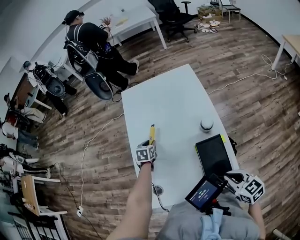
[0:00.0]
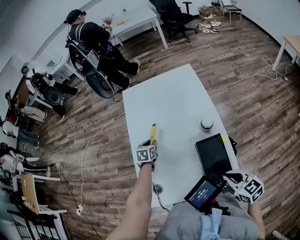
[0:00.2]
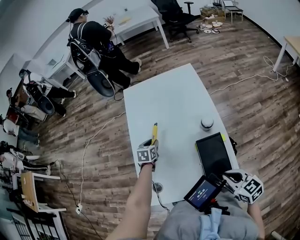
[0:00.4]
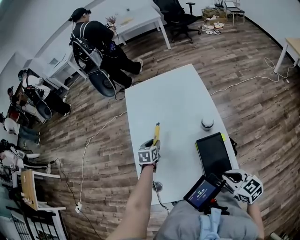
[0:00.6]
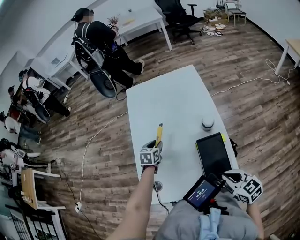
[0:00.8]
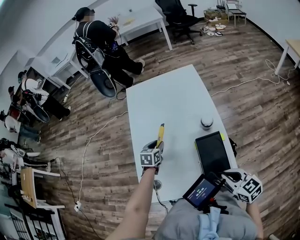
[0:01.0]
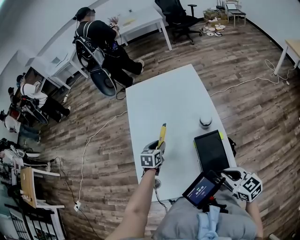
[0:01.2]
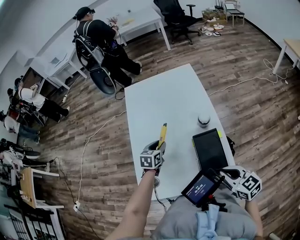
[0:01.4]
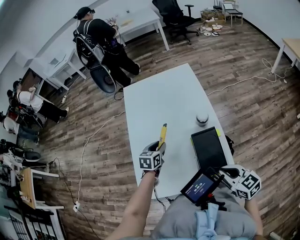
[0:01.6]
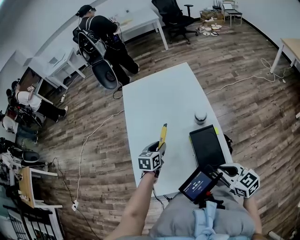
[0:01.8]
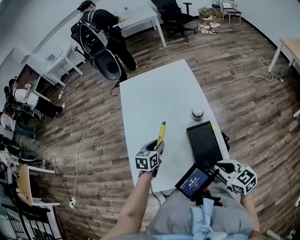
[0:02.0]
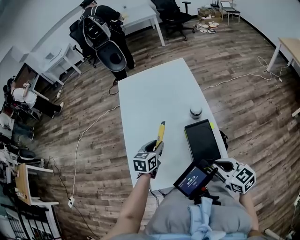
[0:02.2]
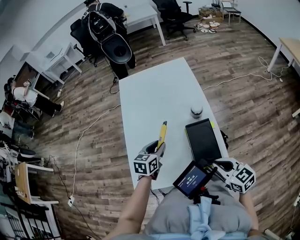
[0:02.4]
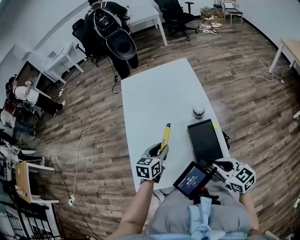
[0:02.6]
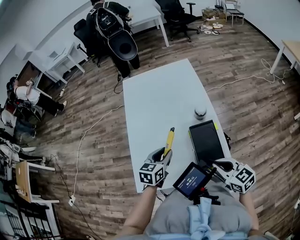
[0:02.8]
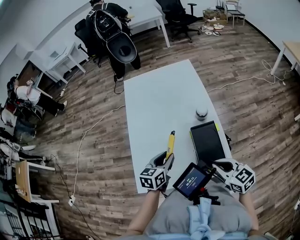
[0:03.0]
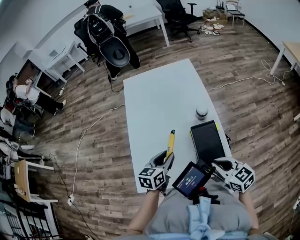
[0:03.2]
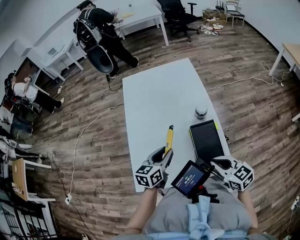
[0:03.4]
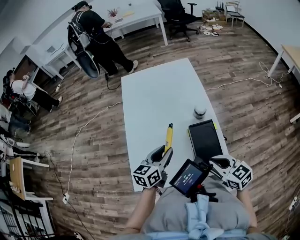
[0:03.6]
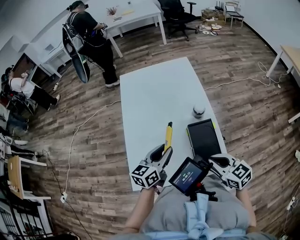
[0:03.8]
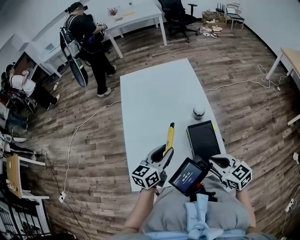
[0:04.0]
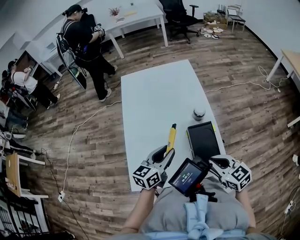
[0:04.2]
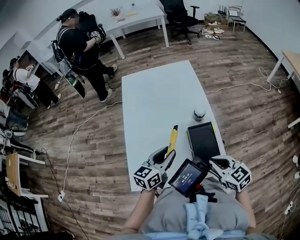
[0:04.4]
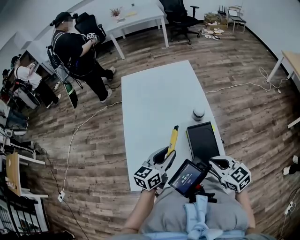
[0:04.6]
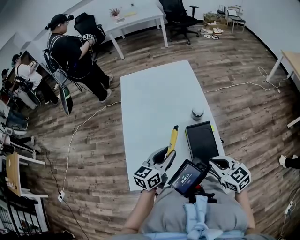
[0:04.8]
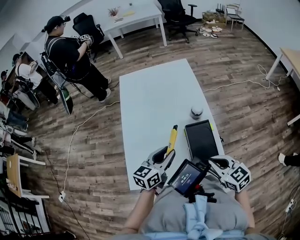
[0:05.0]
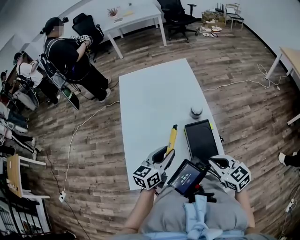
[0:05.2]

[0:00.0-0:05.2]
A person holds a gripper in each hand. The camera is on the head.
0:00.0 to 0:01.8: The left gripper heads backward, upward and to the right, covering approximately 15 cm.
0:01.8 to 0:03.4: The left gripper travels backward and upward by about 10 cm.
0:03.4 to 0:05.2: The grippers move only a little.

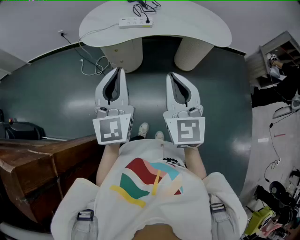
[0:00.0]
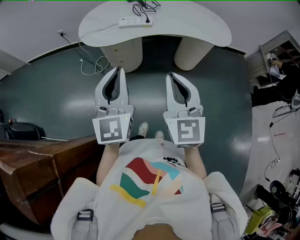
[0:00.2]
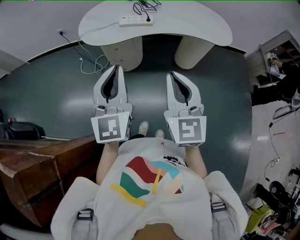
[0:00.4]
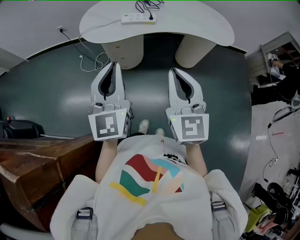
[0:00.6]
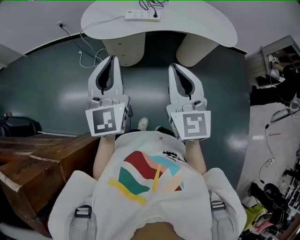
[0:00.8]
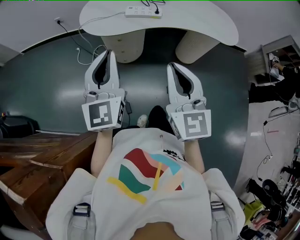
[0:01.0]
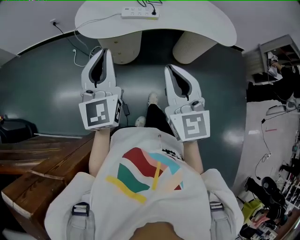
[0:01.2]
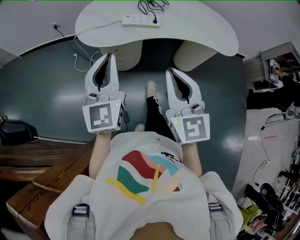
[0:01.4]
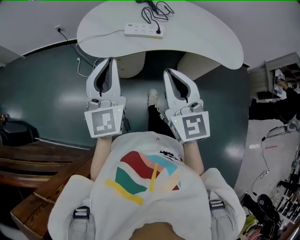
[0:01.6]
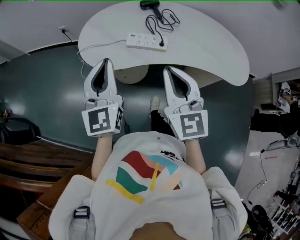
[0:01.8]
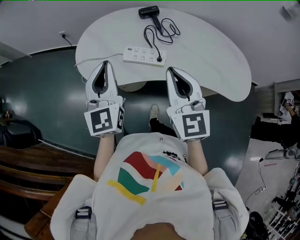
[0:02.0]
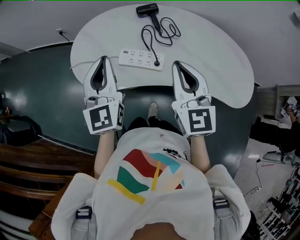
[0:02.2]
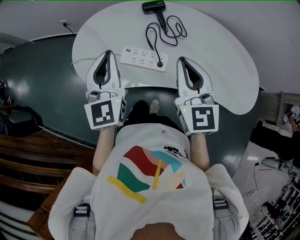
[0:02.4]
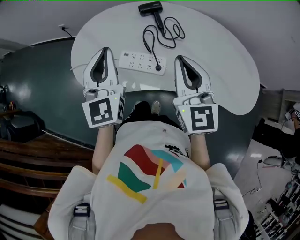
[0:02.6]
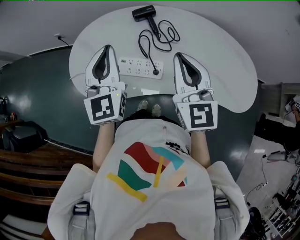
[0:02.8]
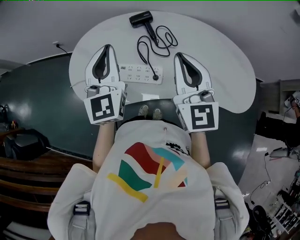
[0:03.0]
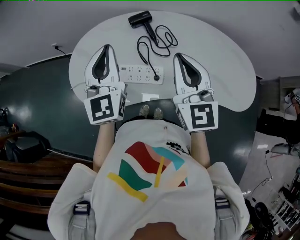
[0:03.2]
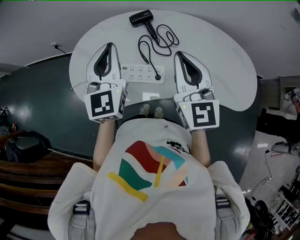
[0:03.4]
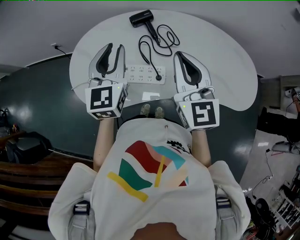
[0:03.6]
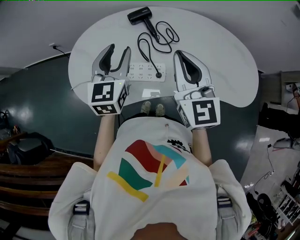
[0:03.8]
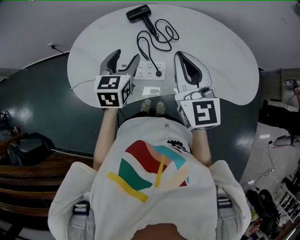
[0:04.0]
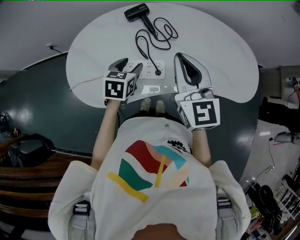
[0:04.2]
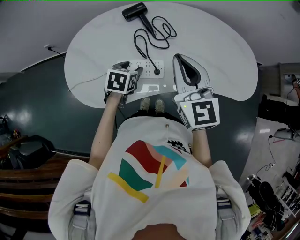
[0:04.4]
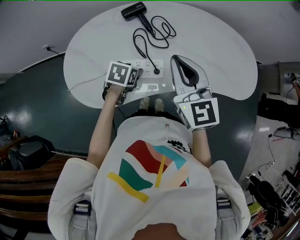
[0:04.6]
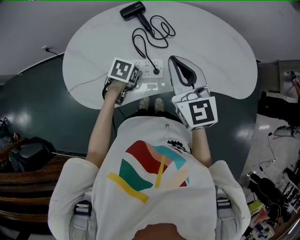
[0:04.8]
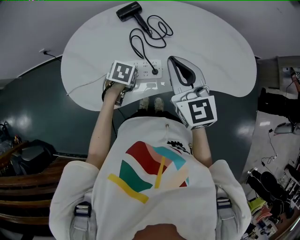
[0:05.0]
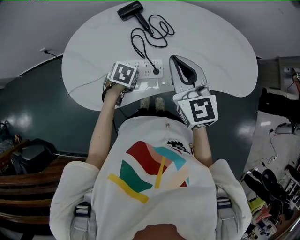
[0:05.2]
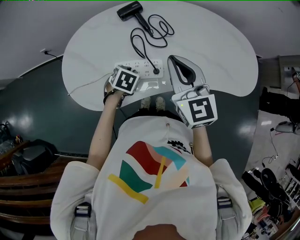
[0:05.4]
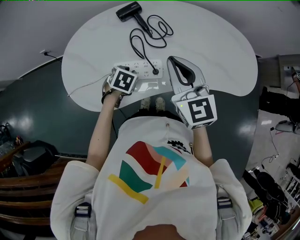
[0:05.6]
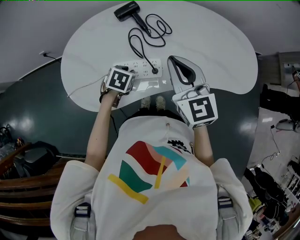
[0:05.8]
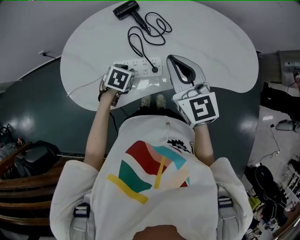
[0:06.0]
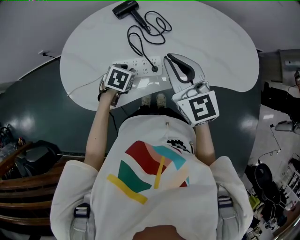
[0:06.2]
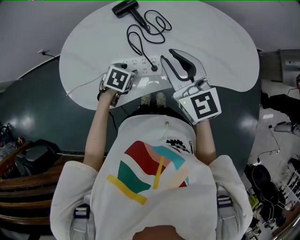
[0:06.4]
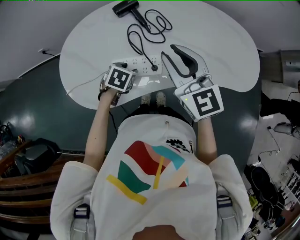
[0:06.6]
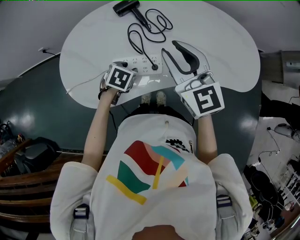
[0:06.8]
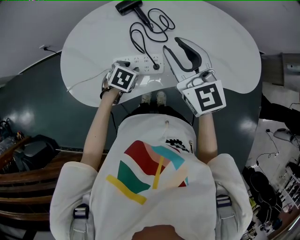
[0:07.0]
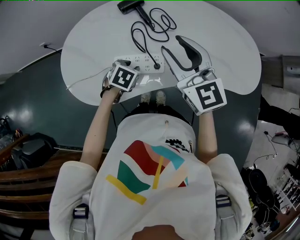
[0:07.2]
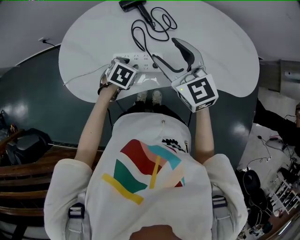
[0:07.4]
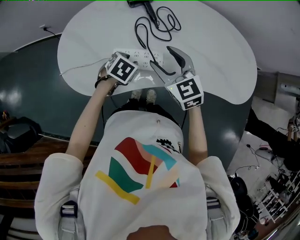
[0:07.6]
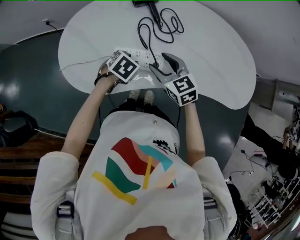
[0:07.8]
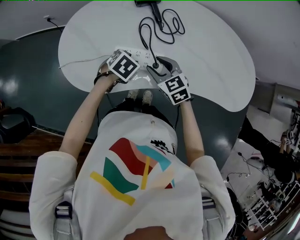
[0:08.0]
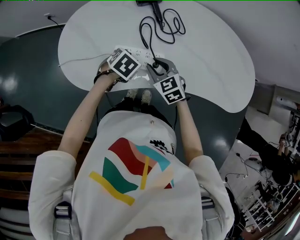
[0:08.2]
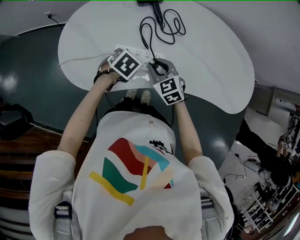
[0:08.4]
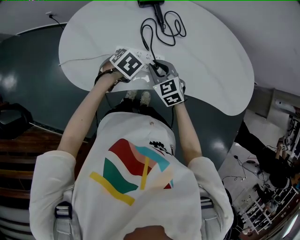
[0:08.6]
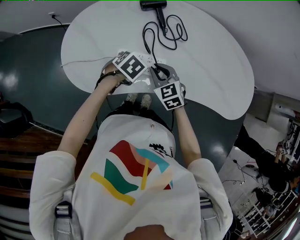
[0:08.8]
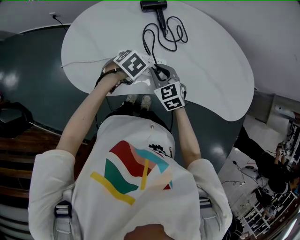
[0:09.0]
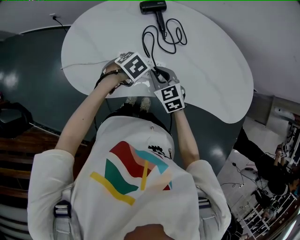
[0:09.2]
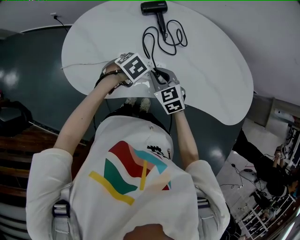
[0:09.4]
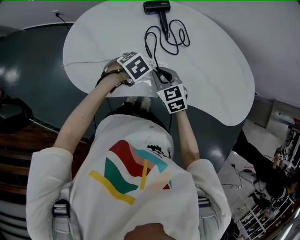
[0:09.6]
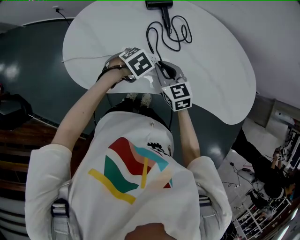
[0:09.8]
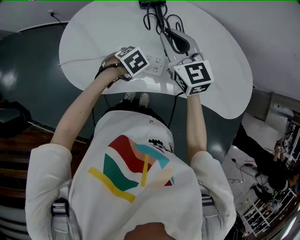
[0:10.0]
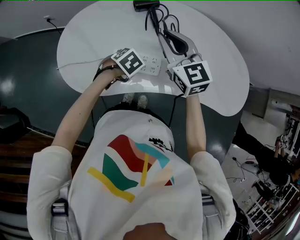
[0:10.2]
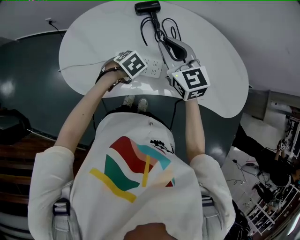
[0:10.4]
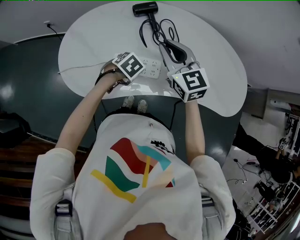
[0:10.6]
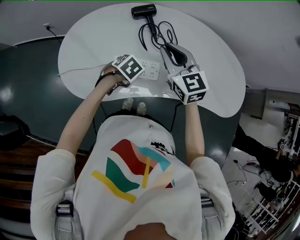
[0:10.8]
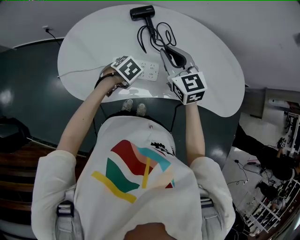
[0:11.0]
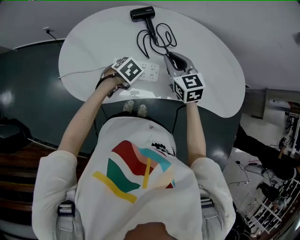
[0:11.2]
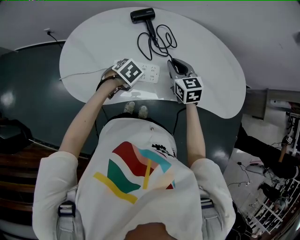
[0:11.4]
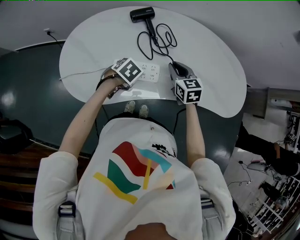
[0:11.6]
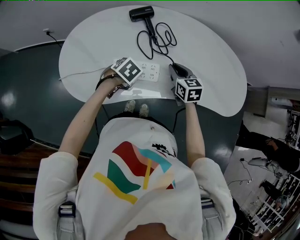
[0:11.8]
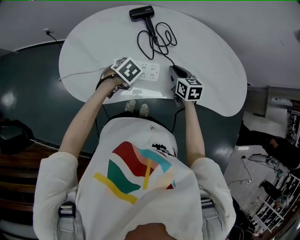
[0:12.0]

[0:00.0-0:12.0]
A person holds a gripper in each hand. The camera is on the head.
0:00.0 to 0:01.6: Both grippers move forward, about 15 cm.
0:01.6 to 0:03.0: The right gripper shifts approximately 35 cm forward and to the right; the left gripper moves forward, roughly 30 cm.
0:03.0 to 0:04.4: The left gripper heads downward, covering approximately 25 cm, points its fingers some 60 degrees further downward, and opens up.
0:04.4 to 0:06.0: The left gripper closes up.
0:06.0 to 0:07.6: The right gripper moves downward, roughly 10 cm, swivels some 20 degrees, and opens its fingers.
0:07.6 to 0:09.0: The right gripper is displaced downward by about 10 cm, and closes its fingers.
0:09.0 to 0:10.4: The right gripper goes some 20 cm upward, and swivels roughly 20 degrees.
0:10.4 to 0:12.0: The right gripper is displaced downward by about 20 cm, and turns by approximately 40 degrees.

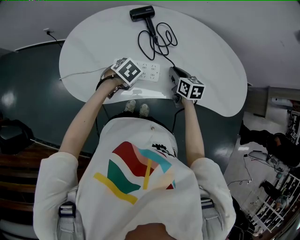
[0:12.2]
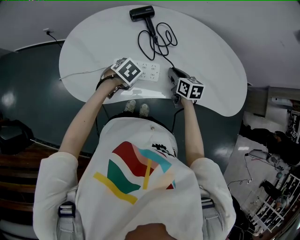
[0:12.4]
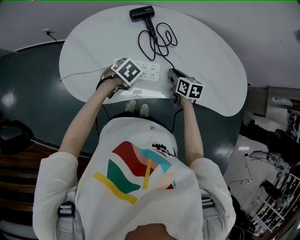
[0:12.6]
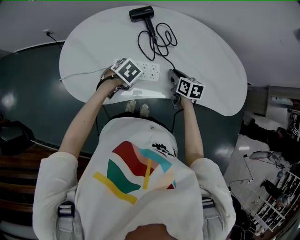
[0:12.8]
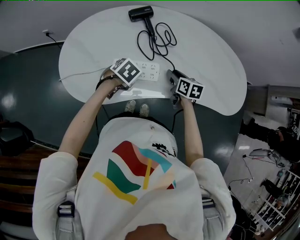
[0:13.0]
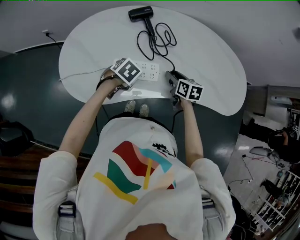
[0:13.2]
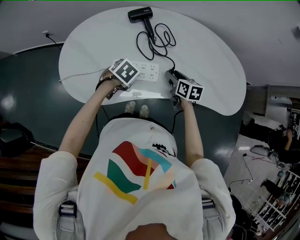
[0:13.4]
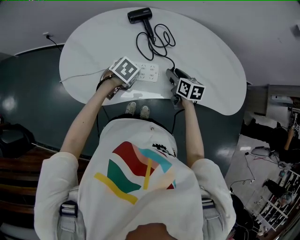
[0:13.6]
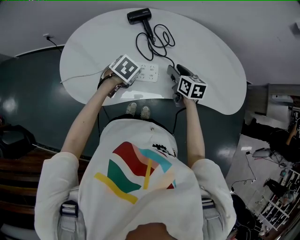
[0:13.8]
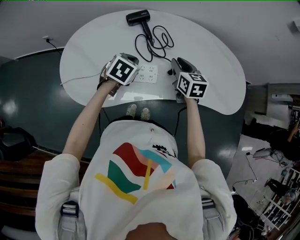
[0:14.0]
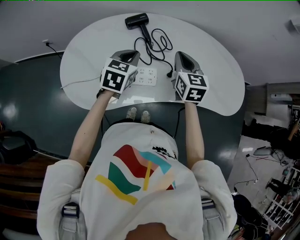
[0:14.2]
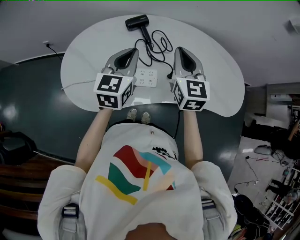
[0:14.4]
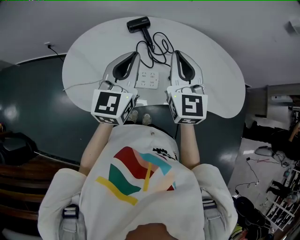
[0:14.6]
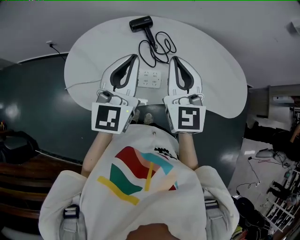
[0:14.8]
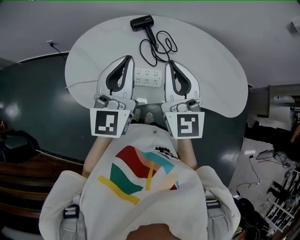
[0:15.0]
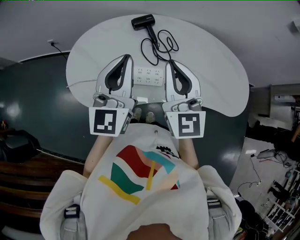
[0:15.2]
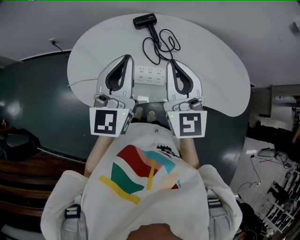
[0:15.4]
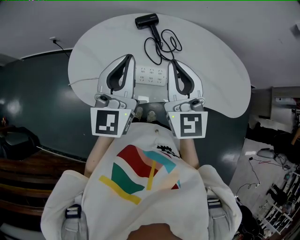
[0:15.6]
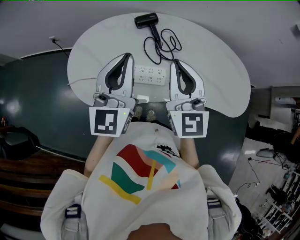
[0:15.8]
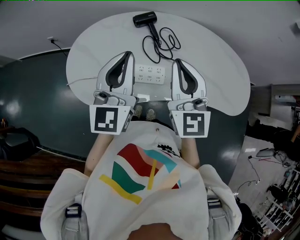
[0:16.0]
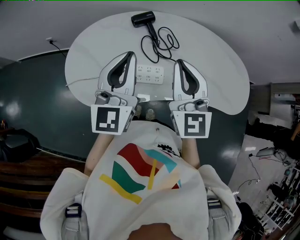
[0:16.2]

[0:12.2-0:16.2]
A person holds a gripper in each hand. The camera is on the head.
0:12.2 to 0:13.6: The right gripper opens up.
0:13.6 to 0:14.8: The grippers both shift upward by about 30 cm. The right gripper tips its fingers upward by roughly 40 degrees, and closes up; the left gripper points its fingers some 80 degrees further upward, and closes up.
0:14.8 to 0:16.2: The grippers stay close to where they were, moving slightly.

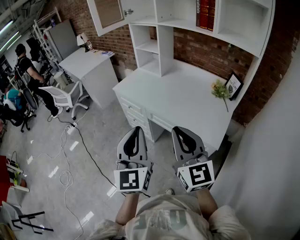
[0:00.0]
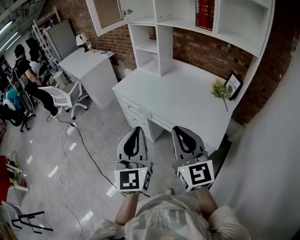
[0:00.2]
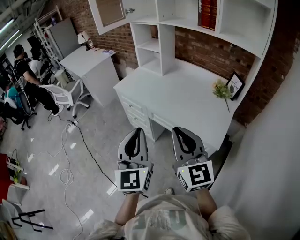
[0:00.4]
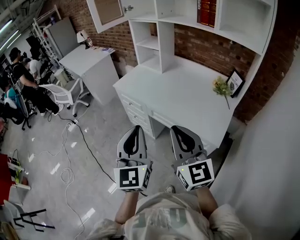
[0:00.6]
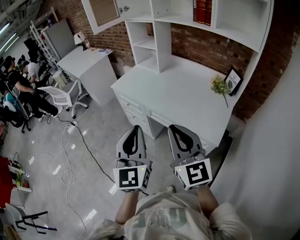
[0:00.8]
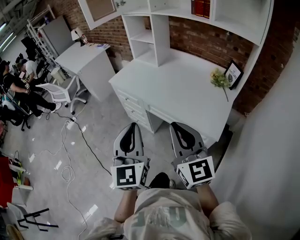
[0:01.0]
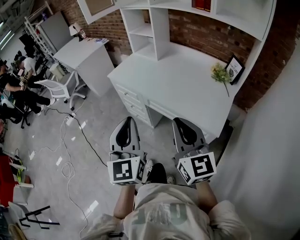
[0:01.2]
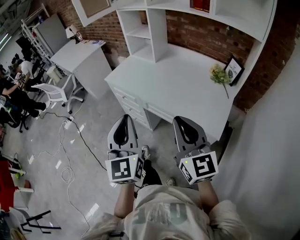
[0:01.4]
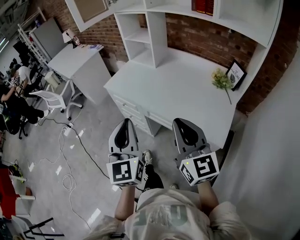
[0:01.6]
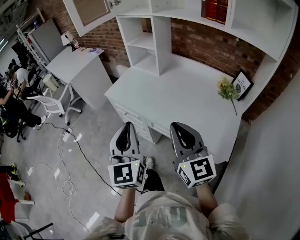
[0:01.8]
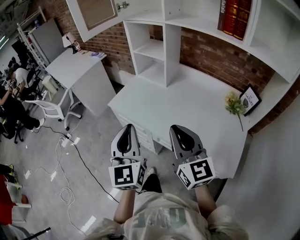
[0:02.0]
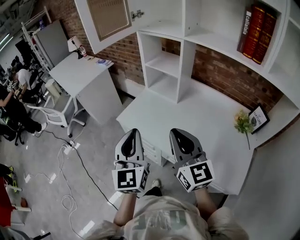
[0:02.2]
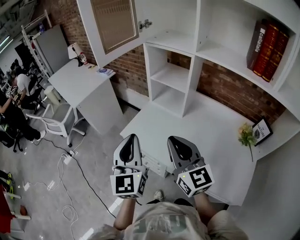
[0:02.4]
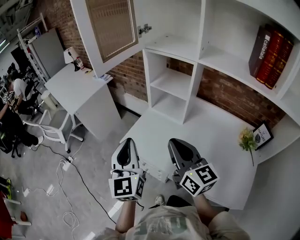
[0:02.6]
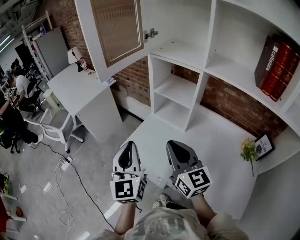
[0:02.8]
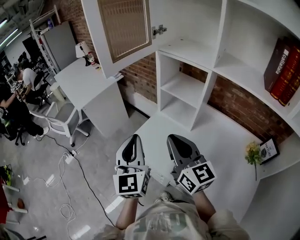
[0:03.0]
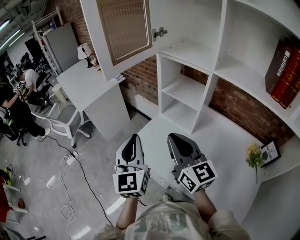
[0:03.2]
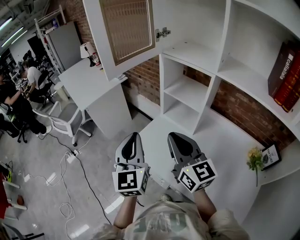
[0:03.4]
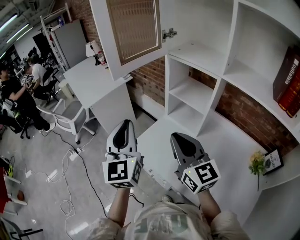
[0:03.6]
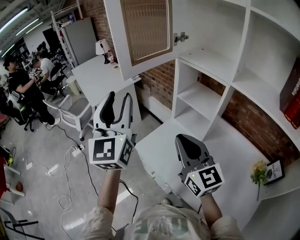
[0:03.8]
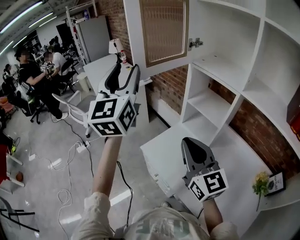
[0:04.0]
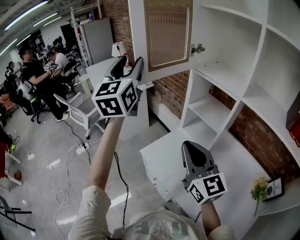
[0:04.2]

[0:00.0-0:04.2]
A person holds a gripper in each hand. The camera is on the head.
0:00.0 to 0:01.4: The left gripper travels forward by approximately 5 cm. Meanwhile the right gripper changes place by about 5 cm.
0:01.4 to 0:02.8: The pair of grippers is taken forward, approximately 50 cm.
0:02.8 to 0:04.2: The left gripper is displaced upward and forward by about 30 cm, and opens, while the right gripper is displaced upward by about 5 cm.
